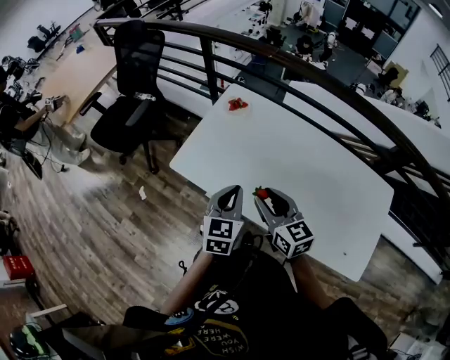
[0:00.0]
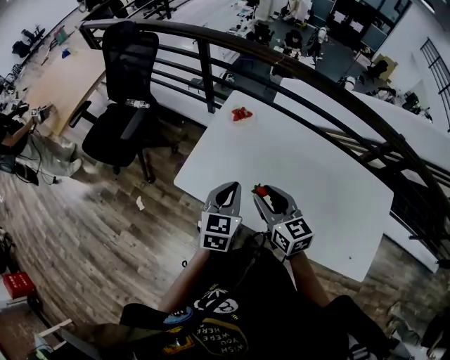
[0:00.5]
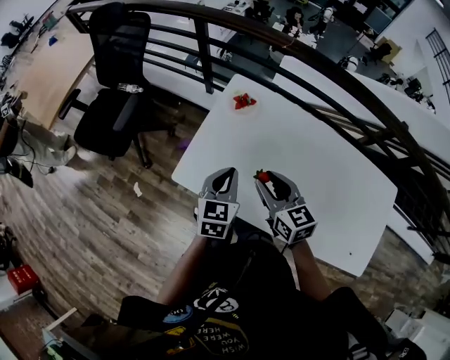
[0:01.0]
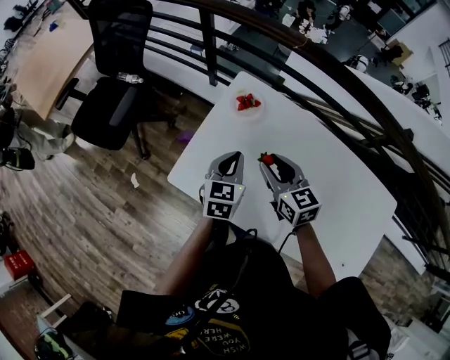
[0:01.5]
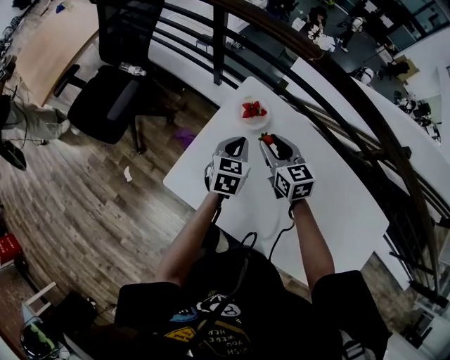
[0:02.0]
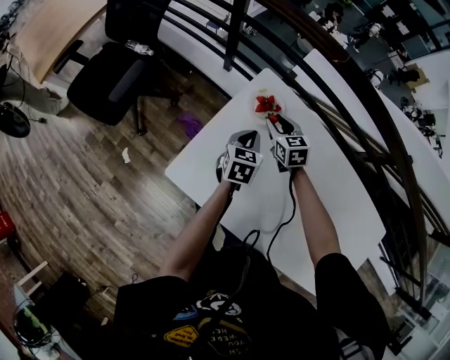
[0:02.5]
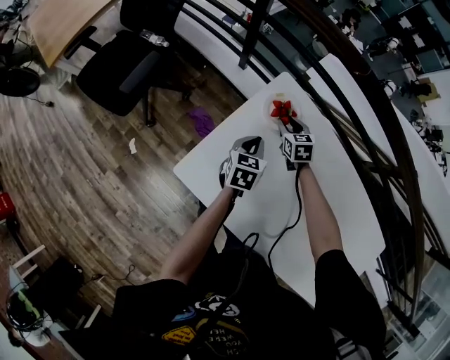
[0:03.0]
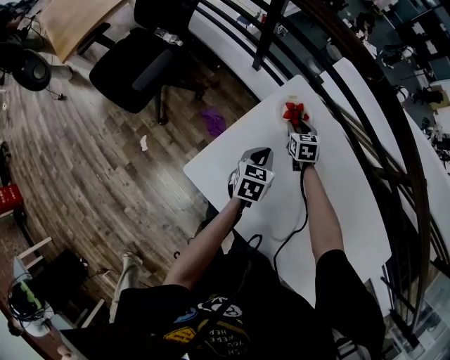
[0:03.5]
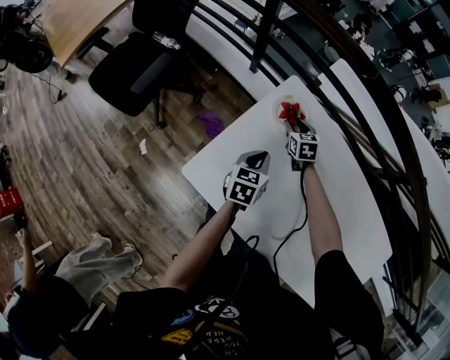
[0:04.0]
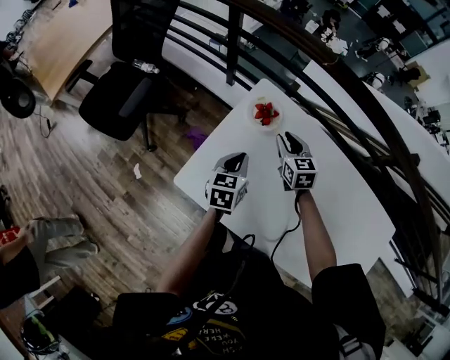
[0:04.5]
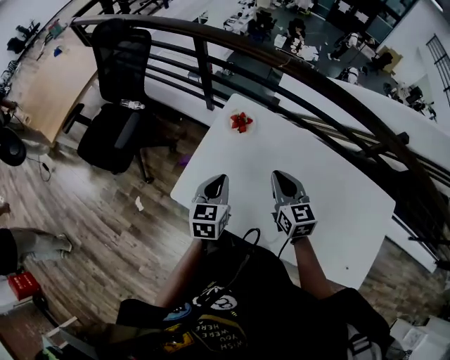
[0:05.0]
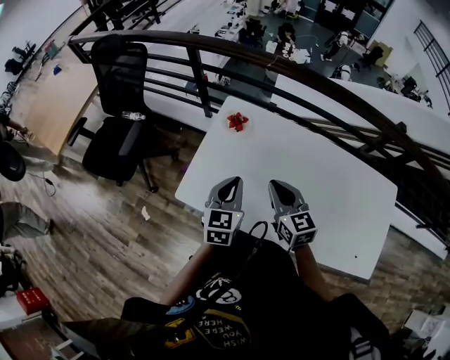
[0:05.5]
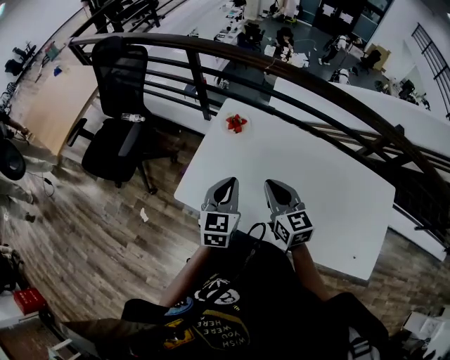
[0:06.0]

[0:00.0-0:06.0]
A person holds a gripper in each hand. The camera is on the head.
0:00.0 to 0:02.0: The left gripper is displaced forward and downward by roughly 35 cm; the right gripper shifts about 35 cm forward.
0:02.0 to 0:04.0: The left gripper travels downward by some 5 cm. Meanwhile the right gripper goes about 25 cm downward and forward.
0:04.0 to 0:06.0: The right gripper is displaced backward and upward by roughly 50 cm, changes its angle by some 30 degrees, and closes. Meanwhile the left gripper shifts roughly 25 cm upward and backward, and rotates approximately 30 degrees.

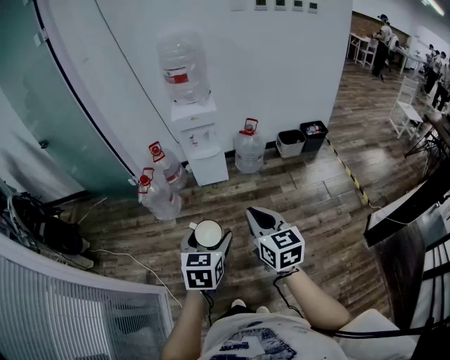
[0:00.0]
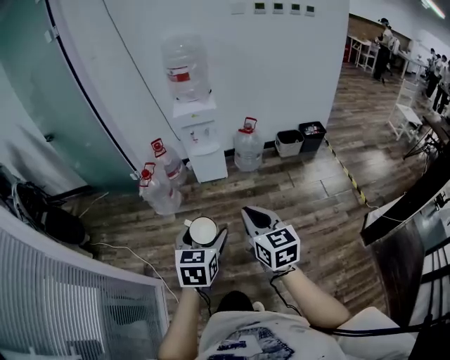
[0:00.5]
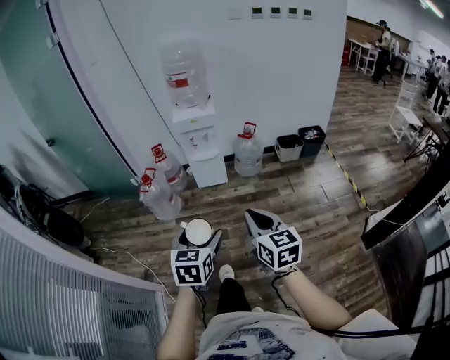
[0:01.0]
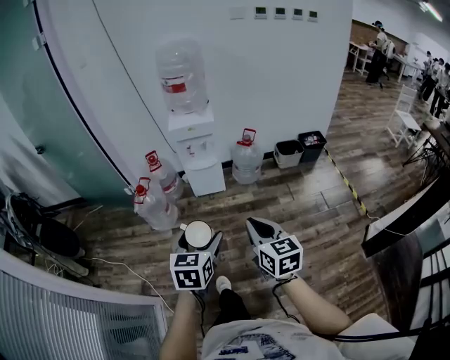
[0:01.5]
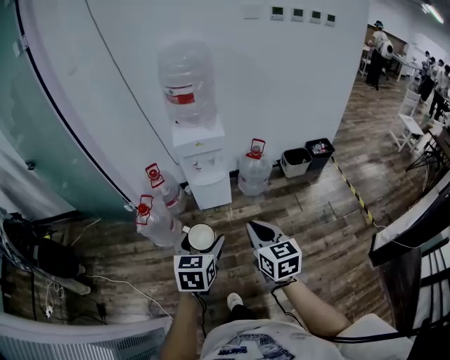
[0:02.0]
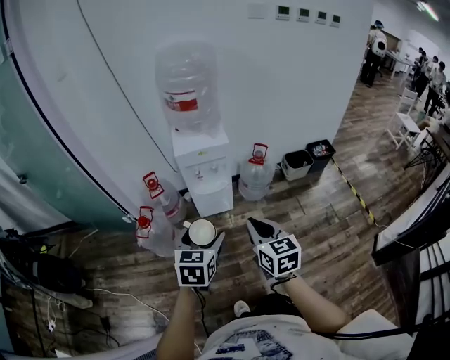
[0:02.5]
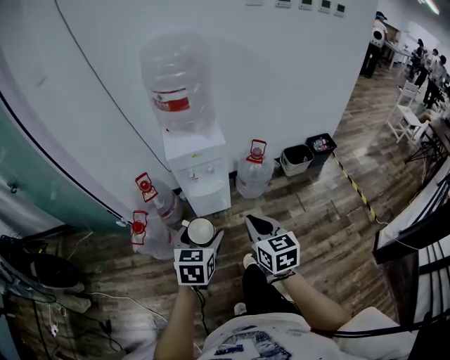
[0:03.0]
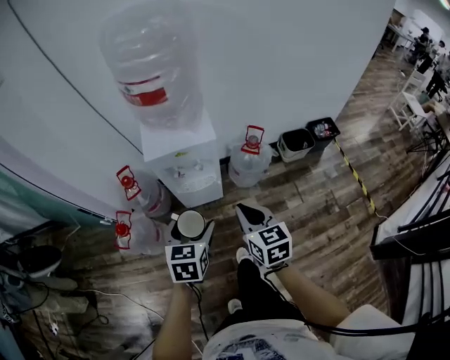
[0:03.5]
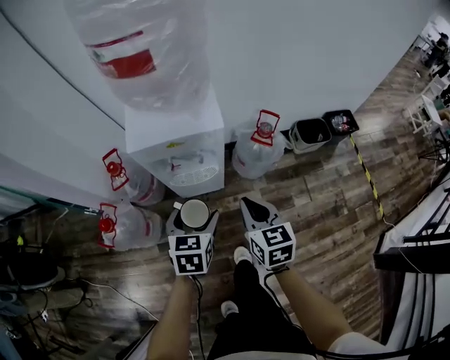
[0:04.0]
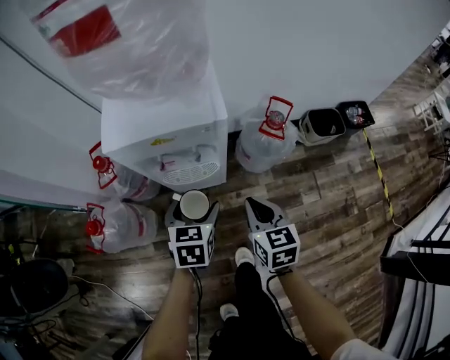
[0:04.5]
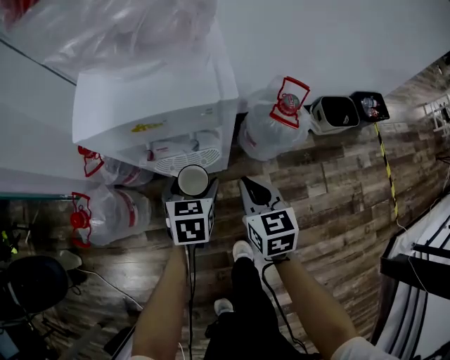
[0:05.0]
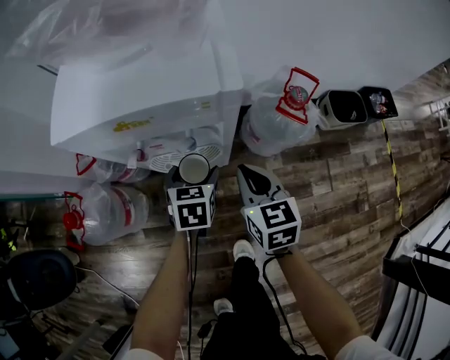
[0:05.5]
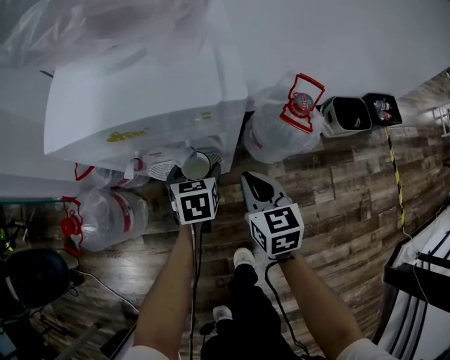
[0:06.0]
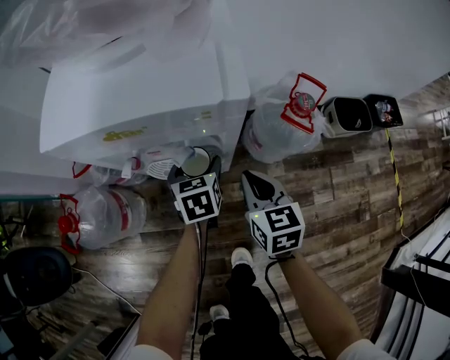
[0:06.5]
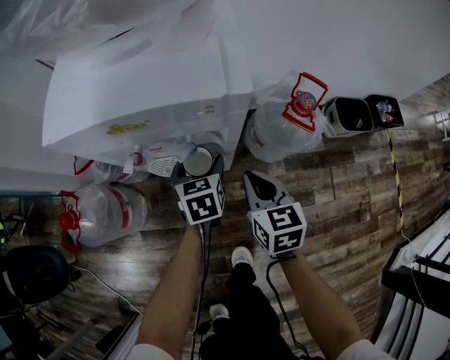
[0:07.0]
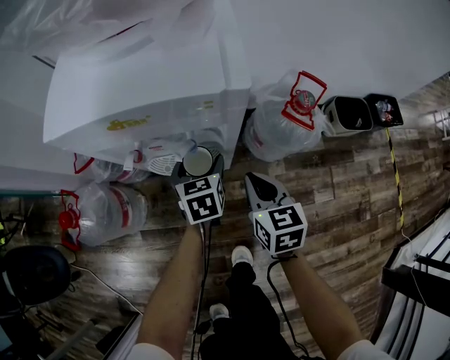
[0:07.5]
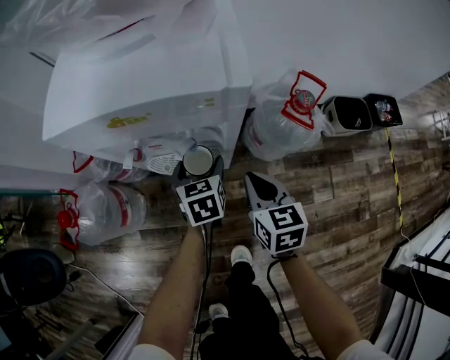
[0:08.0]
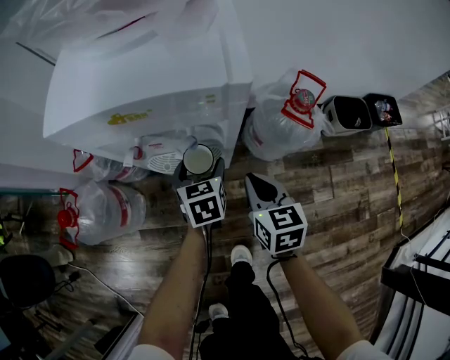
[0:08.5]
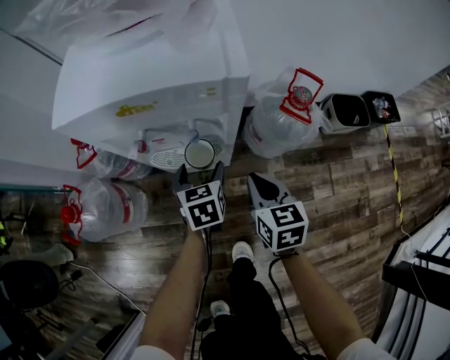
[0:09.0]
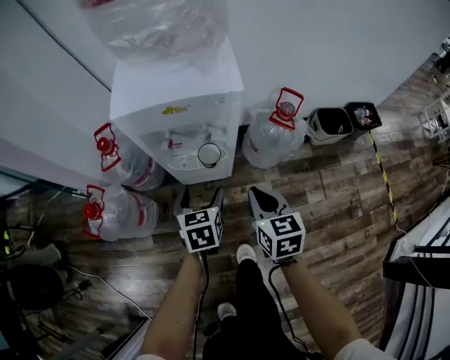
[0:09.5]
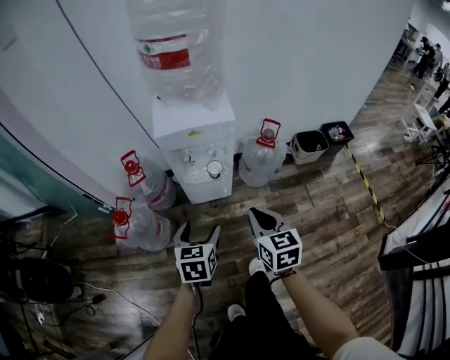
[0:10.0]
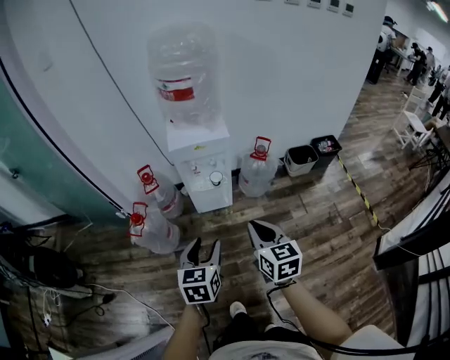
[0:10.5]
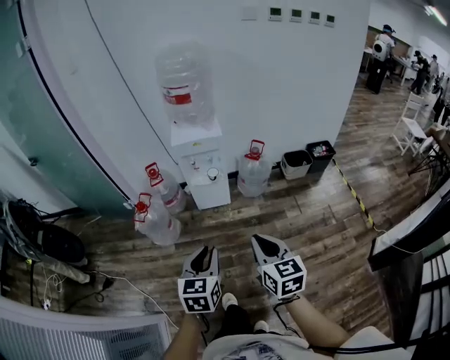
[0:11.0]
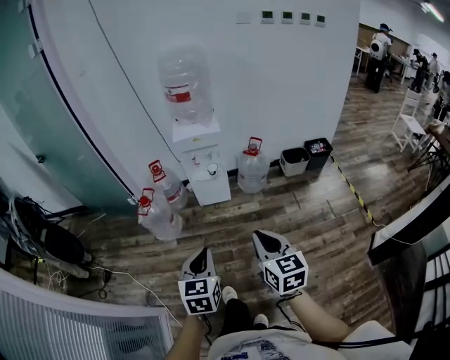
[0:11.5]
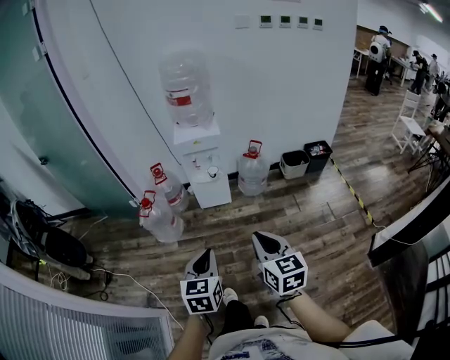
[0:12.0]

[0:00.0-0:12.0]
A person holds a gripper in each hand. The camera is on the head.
0:00.0 to 0:02.0: Both grippers travel together forward, roughly 20 cm.
0:02.0 to 0:04.0: Both grippers are carried forward, about 40 cm. Both grippers travel together downward, some 25 cm.
0:04.0 to 0:06.0: Both grippers move downward and forward, some 30 cm.
0:06.0 to 0:08.0: The grippers make only small movements.
0:08.0 to 0:10.0: The right gripper travels upward and backward by about 40 cm; the left gripper goes about 40 cm backward and upward.
0:10.0 to 0:12.0: The two grippers travel together, backward, some 40 cm. Both grippers move upward, approximately 25 cm. The left gripper closes up.

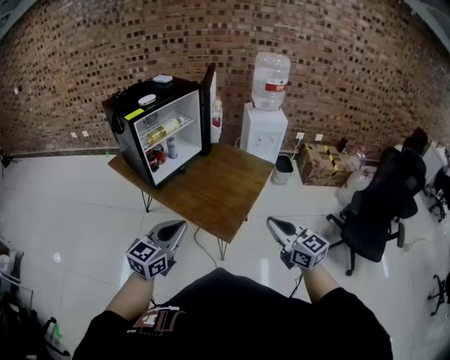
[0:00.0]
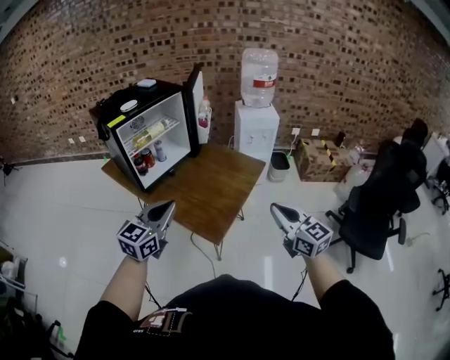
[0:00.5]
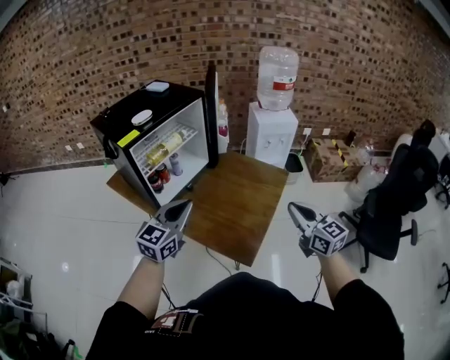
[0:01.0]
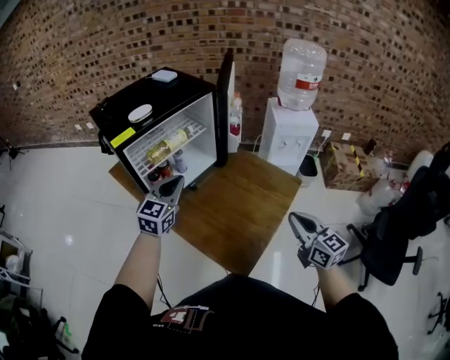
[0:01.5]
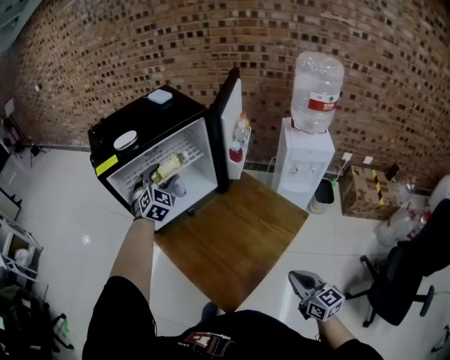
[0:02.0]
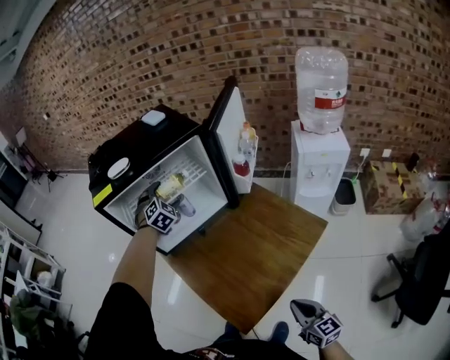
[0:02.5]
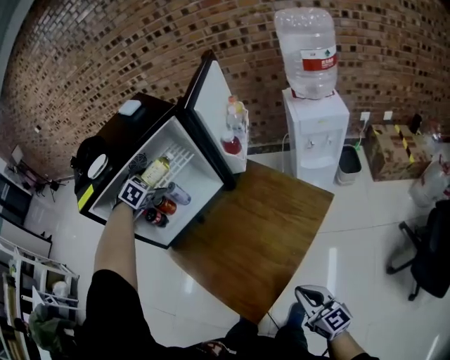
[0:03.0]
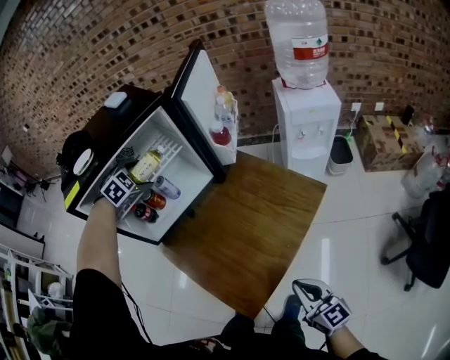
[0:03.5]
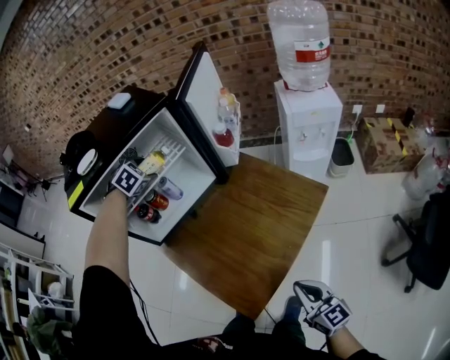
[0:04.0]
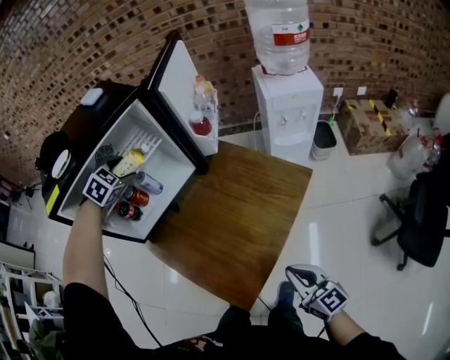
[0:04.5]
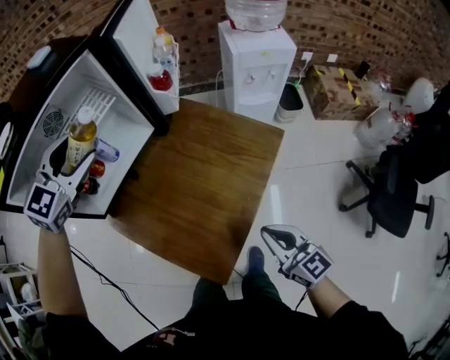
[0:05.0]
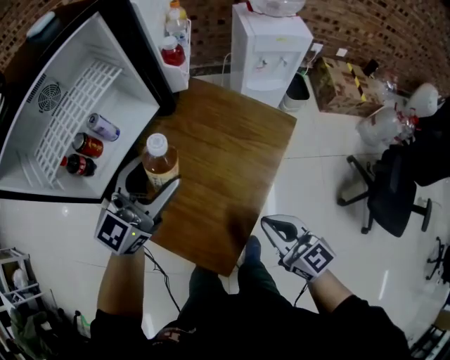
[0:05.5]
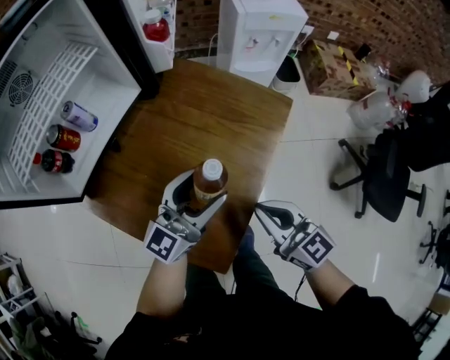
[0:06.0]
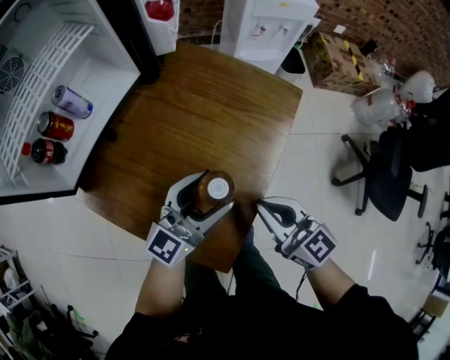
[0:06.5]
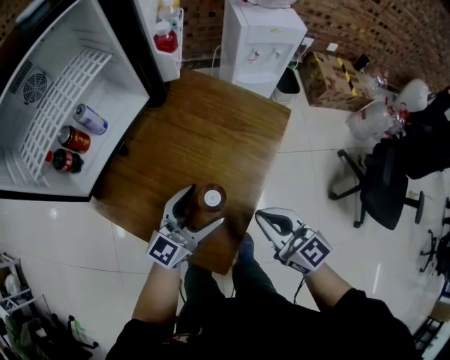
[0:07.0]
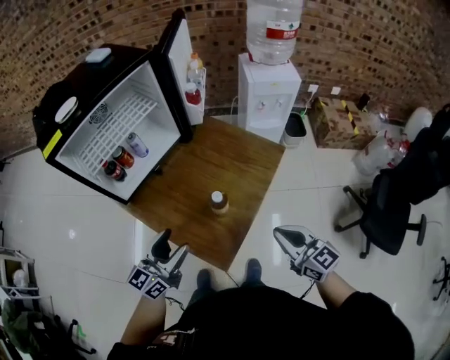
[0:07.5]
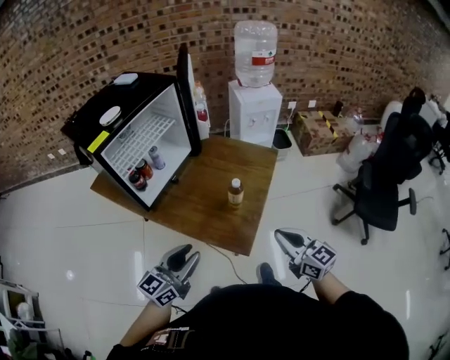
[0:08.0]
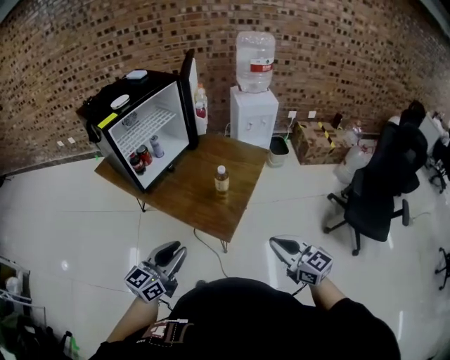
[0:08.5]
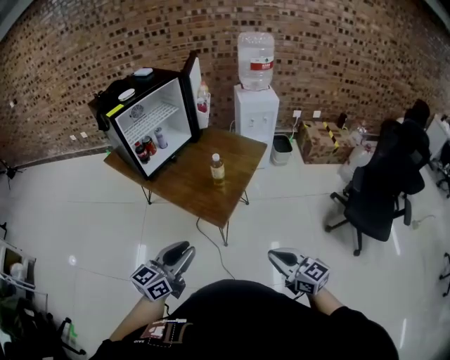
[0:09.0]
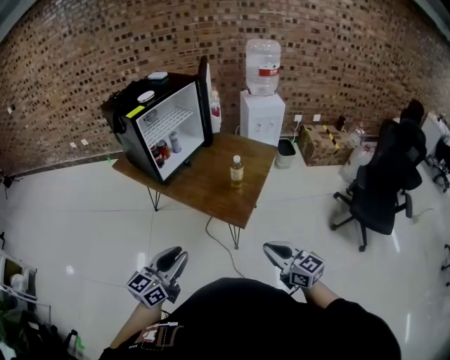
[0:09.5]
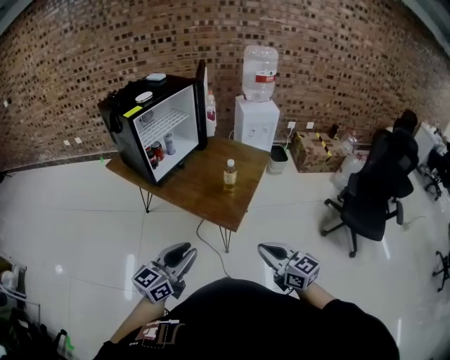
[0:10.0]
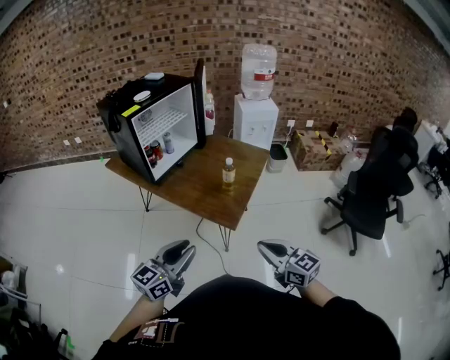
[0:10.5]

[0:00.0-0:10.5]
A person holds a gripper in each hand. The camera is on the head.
0:00.0 to 0:02.0: The left gripper ends up roughly 60 cm from where it was, swivels some 60 degrees, and opens. The right gripper moves about 35 cm.
0:02.0 to 0:04.0: The left gripper is displaced forward and downward by some 15 cm, and tips its fingers downward by about 30 degrees, while the right gripper heads downward, covering about 10 cm.
0:04.0 to 0:06.5: The left gripper changes place by some 40 cm, and angles its fingers upward, by some 60 degrees; the right gripper changes place by approximately 15 cm.
0:06.5 to 0:08.5: Both grippers travel together backward and upward, some 50 cm. The left gripper changes its angle by about 20 degrees, and closes.
0:08.5 to 0:10.5: The left gripper swings left and right, roughly 15 cm each way, with 2 reversals. Meanwhile the right gripper travels backward and to the left by roughly 15 cm.
